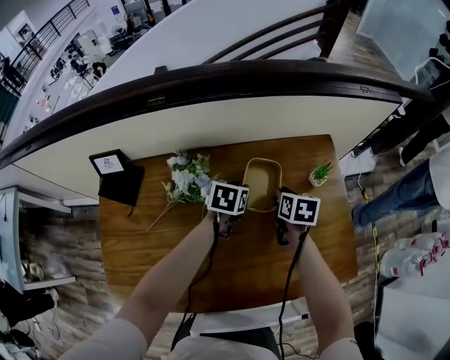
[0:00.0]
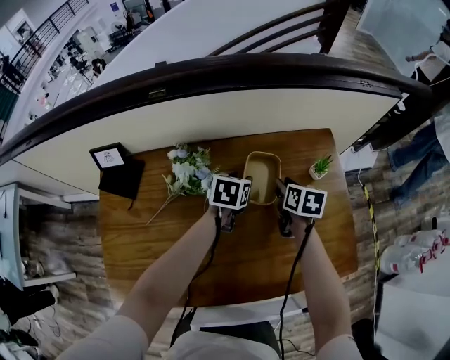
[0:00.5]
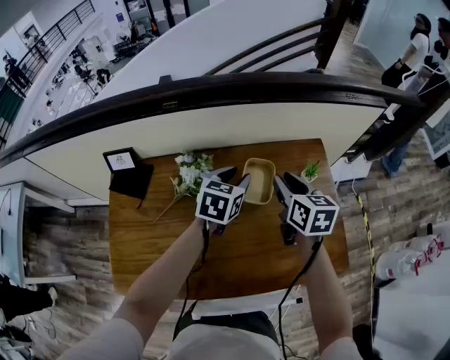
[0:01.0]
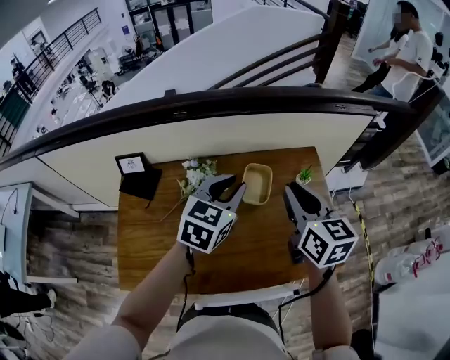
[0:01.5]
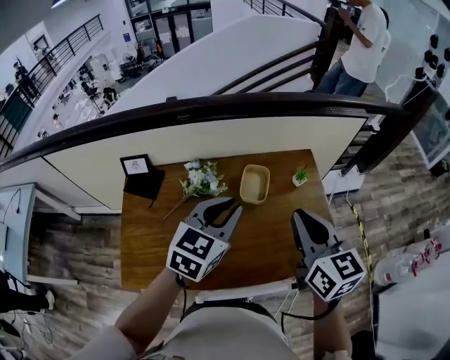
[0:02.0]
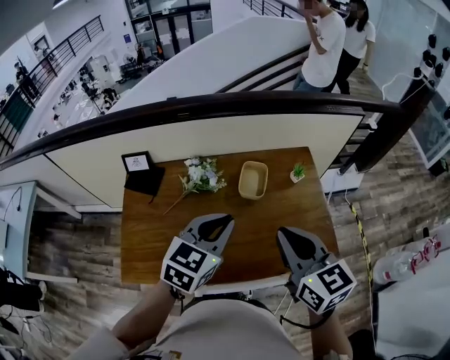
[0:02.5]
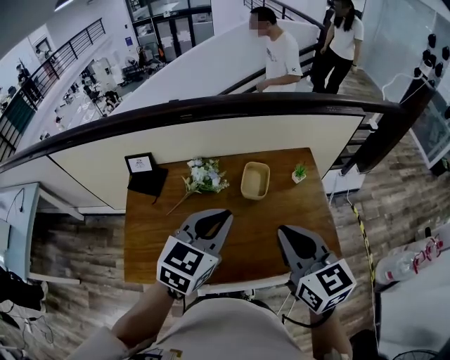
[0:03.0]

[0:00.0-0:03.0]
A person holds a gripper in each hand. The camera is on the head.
0:00.0 to 0:01.5: The grippers both shift upward and backward by roughly 35 cm. The right gripper tips its fingers upward by approximately 30 degrees. The left gripper swivels some 30 degrees.
0:01.5 to 0:03.0: The left gripper moves backward and upward, about 15 cm; the right gripper moves backward, about 15 cm.

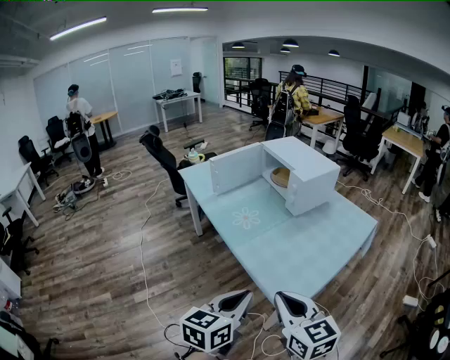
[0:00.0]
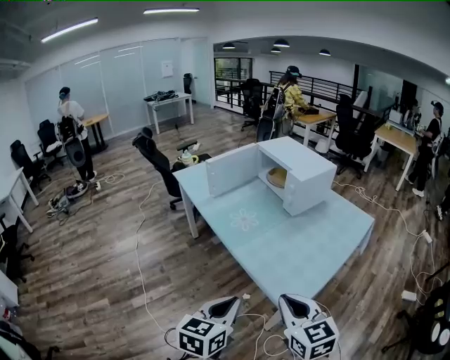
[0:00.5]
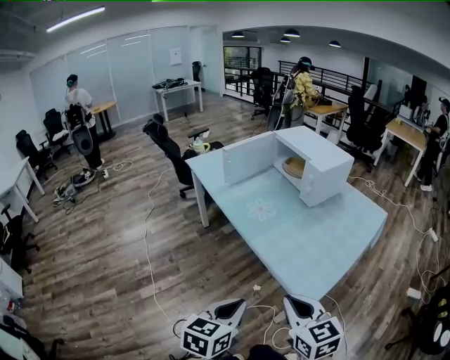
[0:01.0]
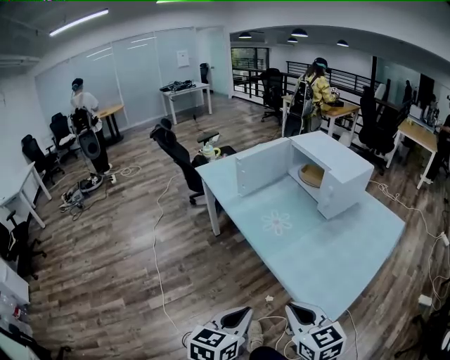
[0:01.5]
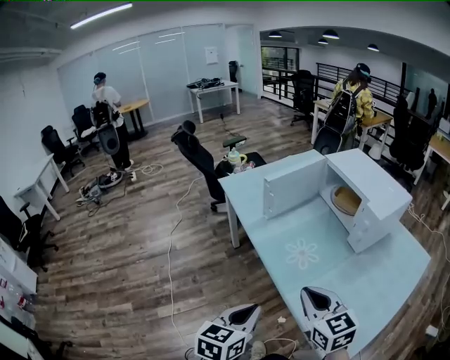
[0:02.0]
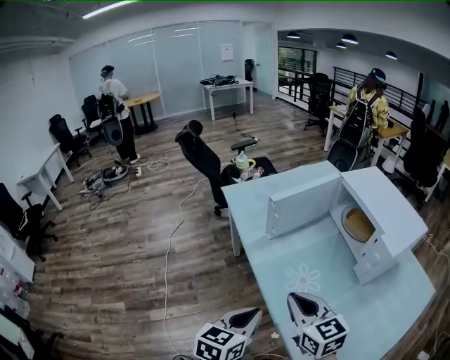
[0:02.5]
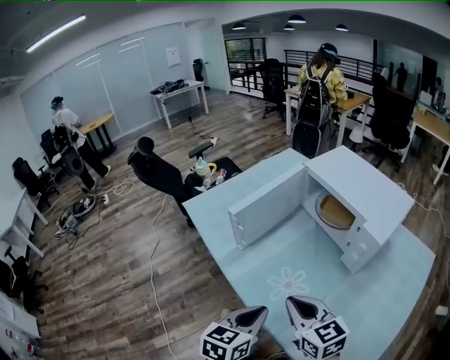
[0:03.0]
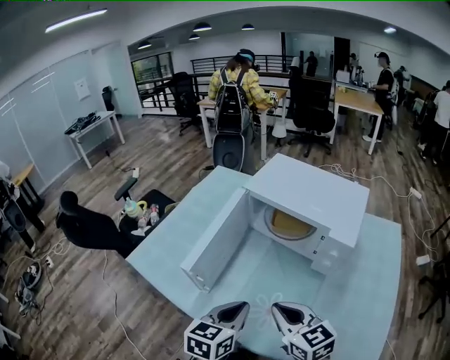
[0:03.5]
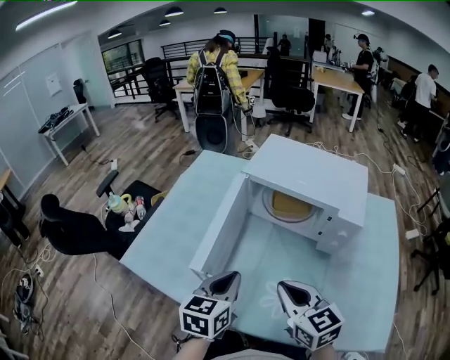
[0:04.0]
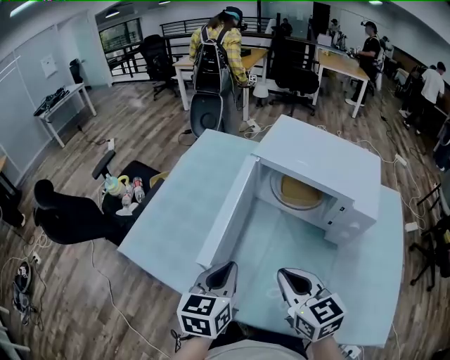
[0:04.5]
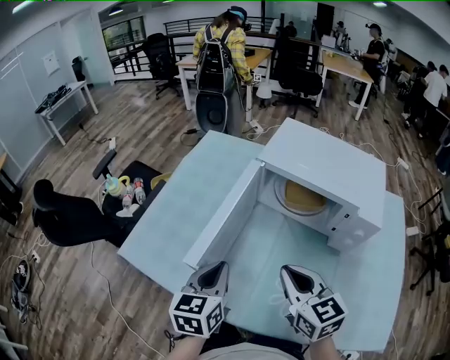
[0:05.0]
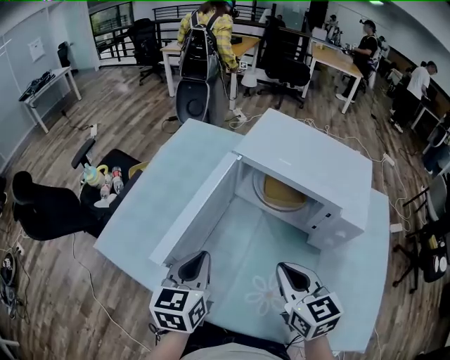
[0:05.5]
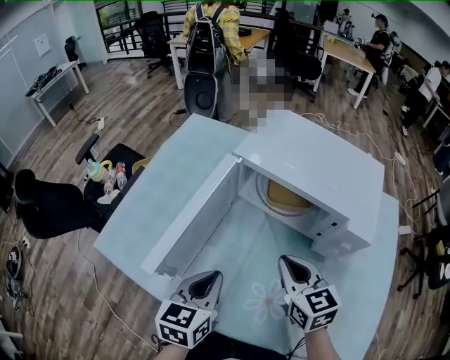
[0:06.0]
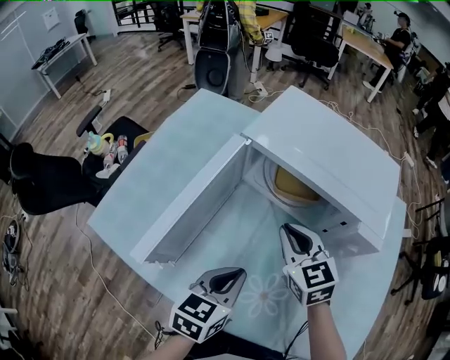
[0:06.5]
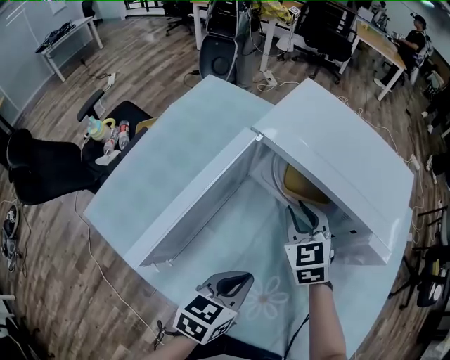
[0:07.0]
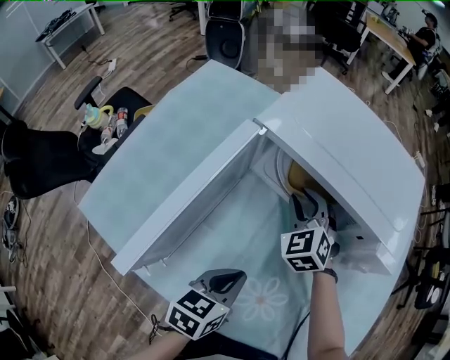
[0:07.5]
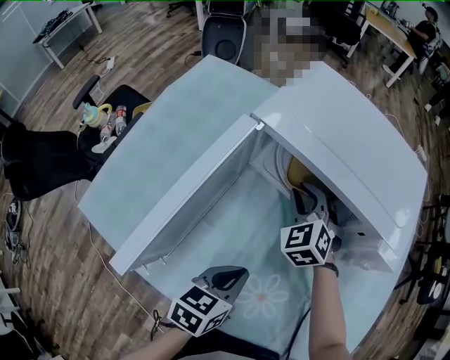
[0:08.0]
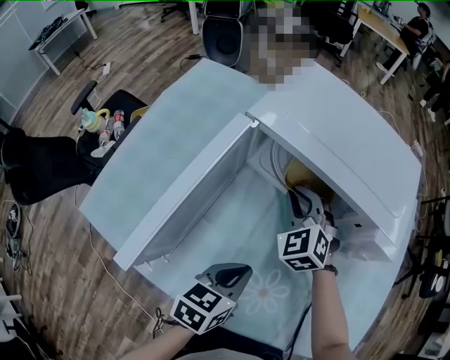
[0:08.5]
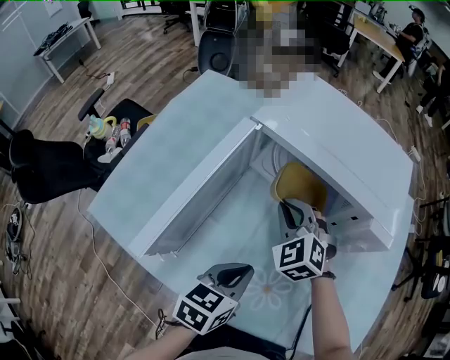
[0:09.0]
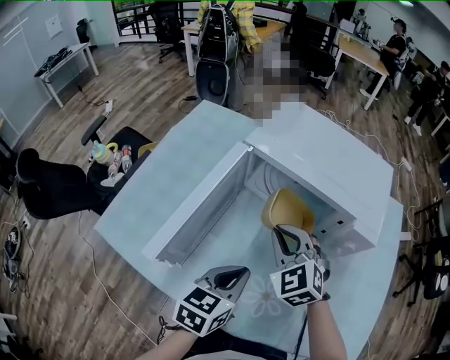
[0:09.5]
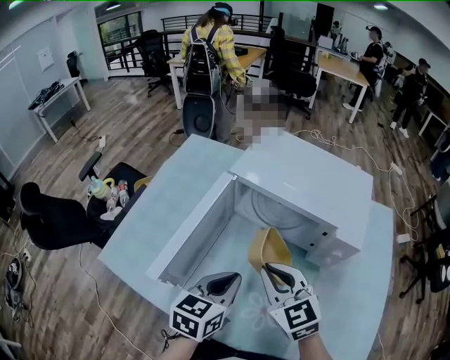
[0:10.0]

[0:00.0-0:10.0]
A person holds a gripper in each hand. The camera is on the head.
0:00.0 to 0:02.0: Both grippers move forward and to the left, approximately 30 cm.
0:02.0 to 0:04.0: The right gripper ends up approximately 30 cm from where it was, and turns by roughly 40 degrees, while the left gripper changes place by some 40 cm, and changes its angle by approximately 40 degrees.
0:04.0 to 0:06.0: The right gripper shifts some 10 cm forward; the left gripper ends up approximately 5 cm from where it was.
0:06.0 to 0:08.0: The left gripper travels downward and to the right by roughly 10 cm, and swivels roughly 20 degrees; the right gripper is displaced forward and downward by about 20 cm, and rolls counterclockwise, seen from behind, by approximately 40 degrees.
0:08.0 to 0:10.0: The left gripper heads upward, covering about 10 cm. The right gripper moves backward and upward, roughly 25 cm, and rotates about 40 degrees.

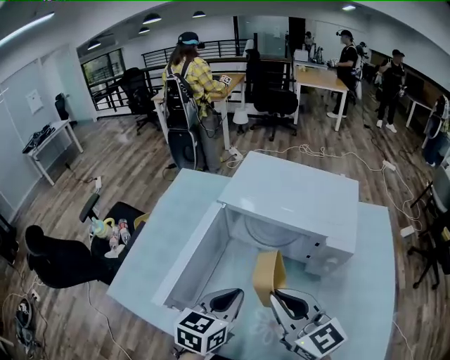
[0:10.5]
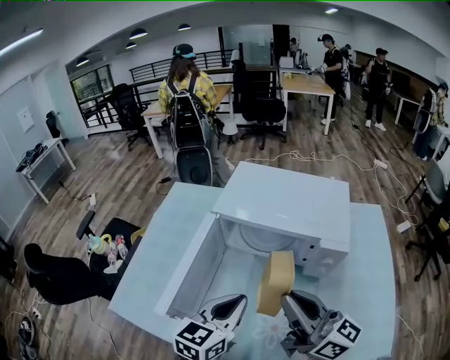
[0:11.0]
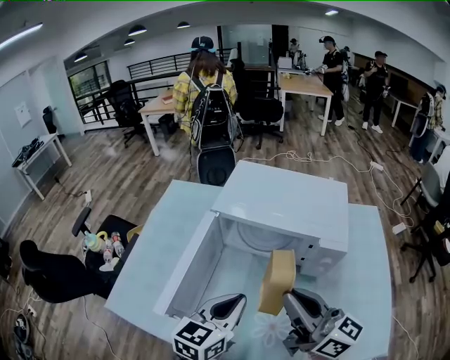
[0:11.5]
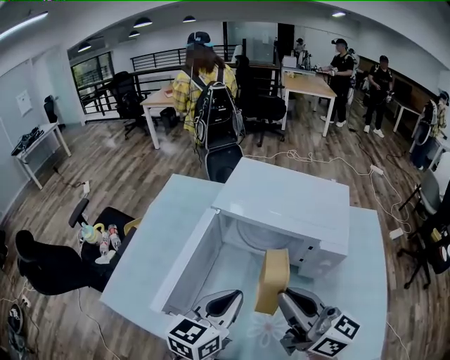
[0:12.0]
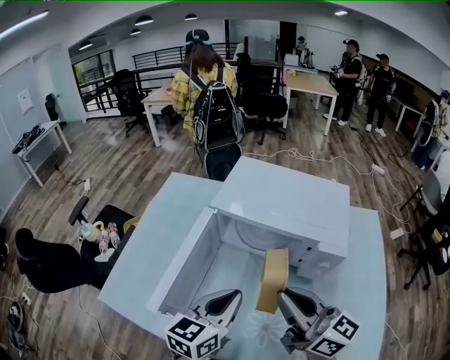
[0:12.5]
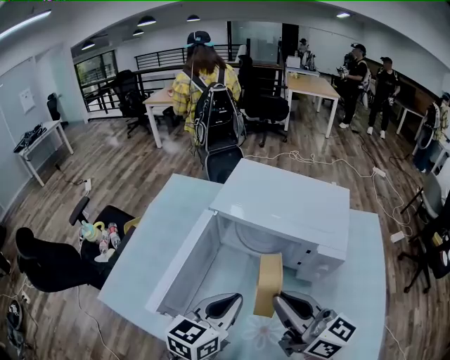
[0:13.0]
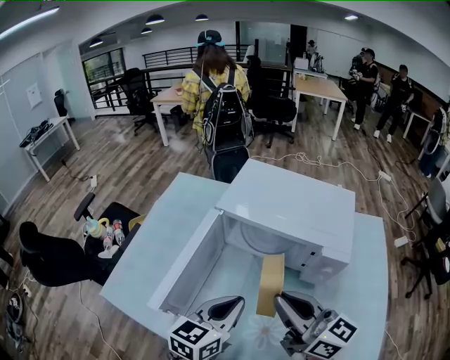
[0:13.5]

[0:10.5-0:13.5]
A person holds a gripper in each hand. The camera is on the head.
0:10.5 to 0:12.0: The right gripper rotates about 30 degrees.
0:12.0 to 0:13.5: The grippers make only small movements.

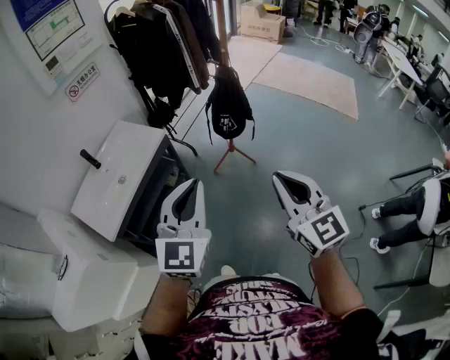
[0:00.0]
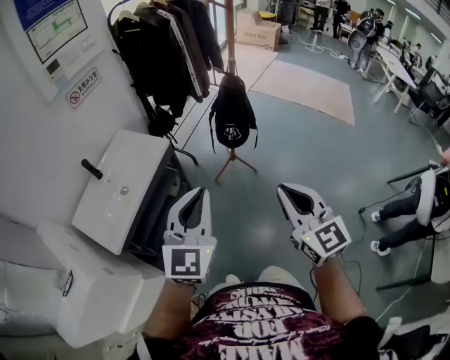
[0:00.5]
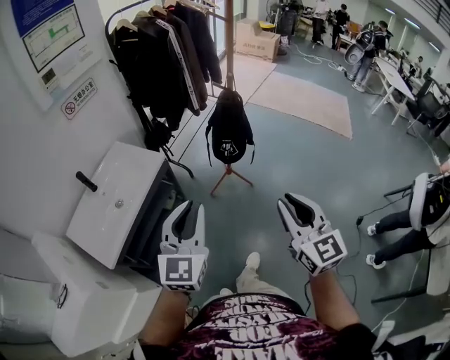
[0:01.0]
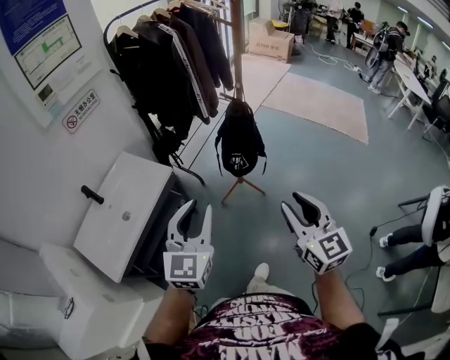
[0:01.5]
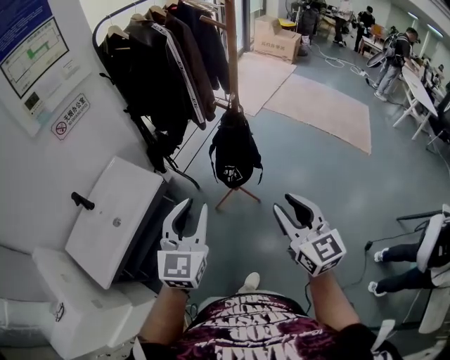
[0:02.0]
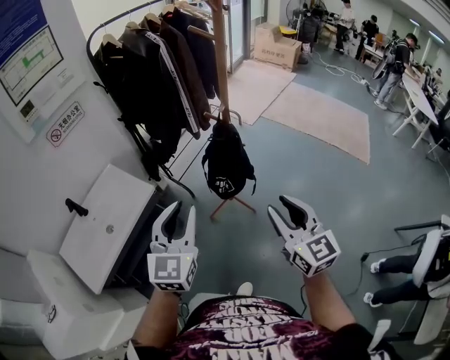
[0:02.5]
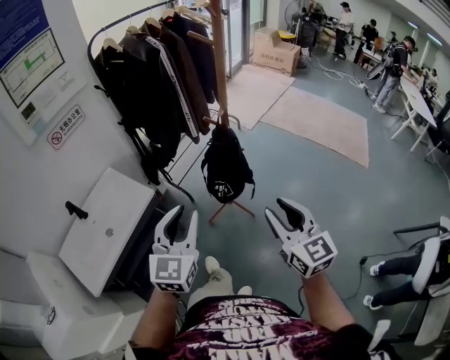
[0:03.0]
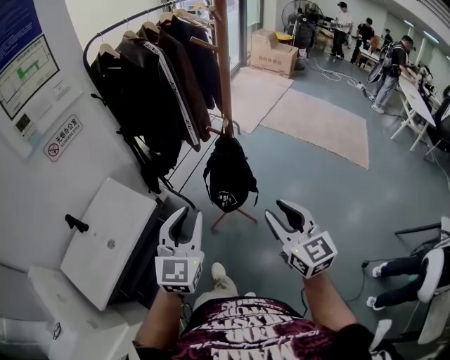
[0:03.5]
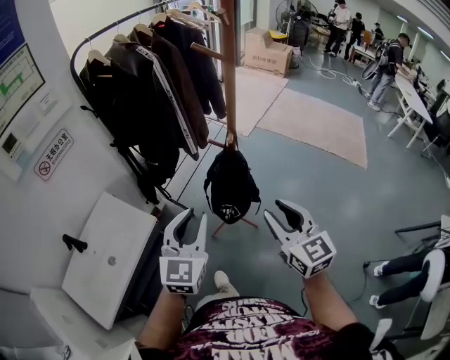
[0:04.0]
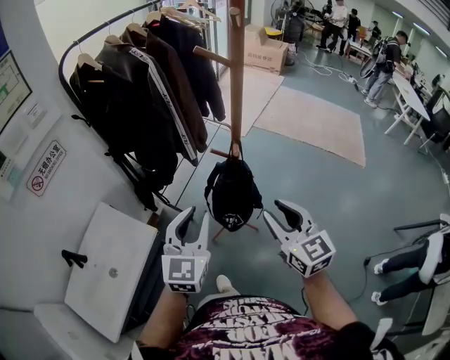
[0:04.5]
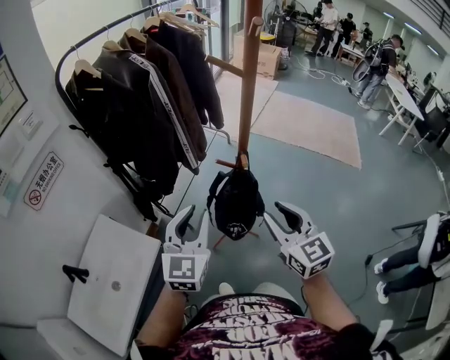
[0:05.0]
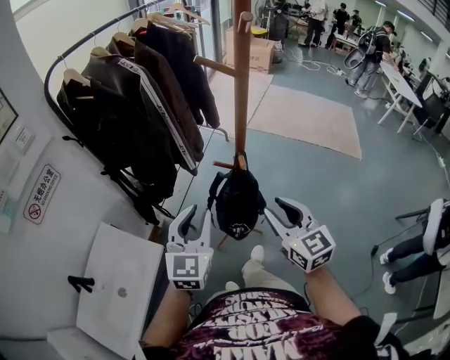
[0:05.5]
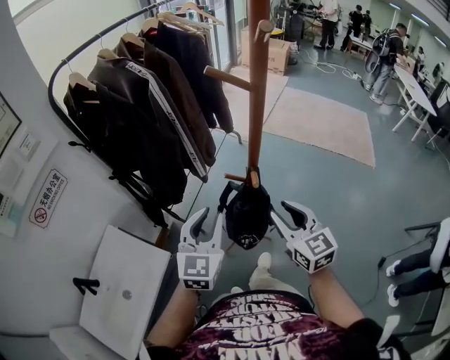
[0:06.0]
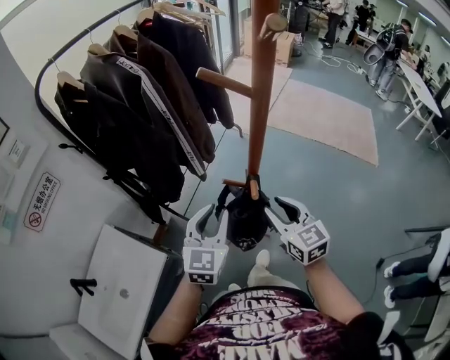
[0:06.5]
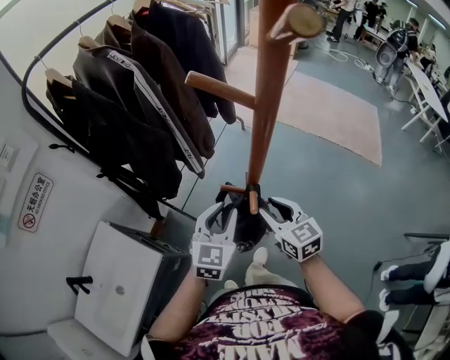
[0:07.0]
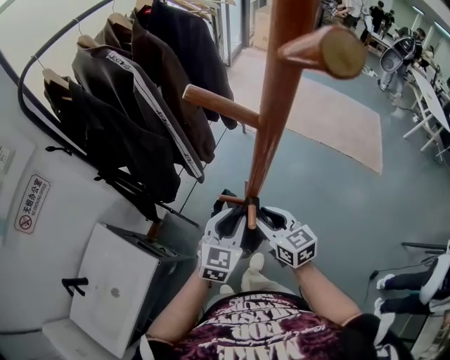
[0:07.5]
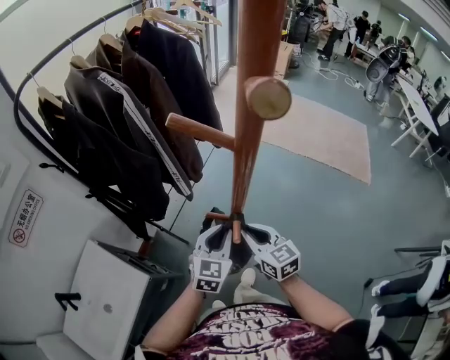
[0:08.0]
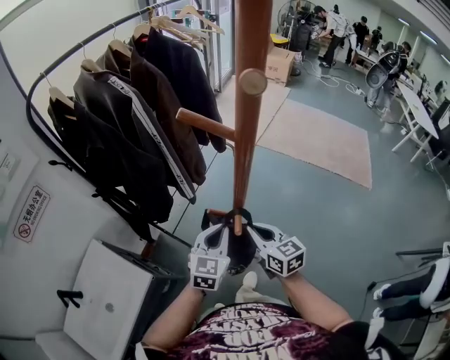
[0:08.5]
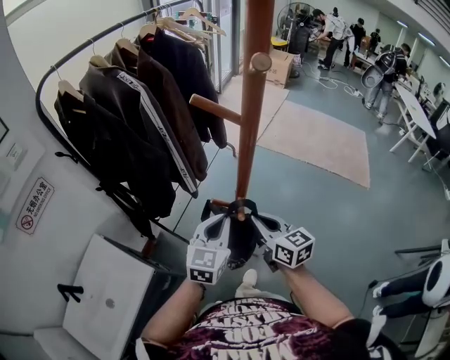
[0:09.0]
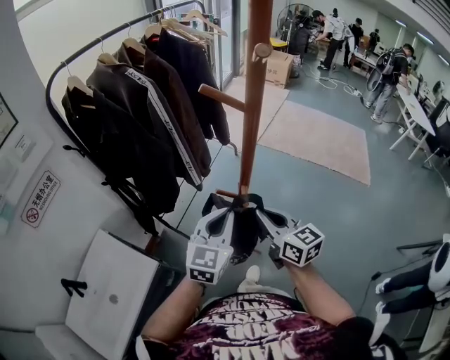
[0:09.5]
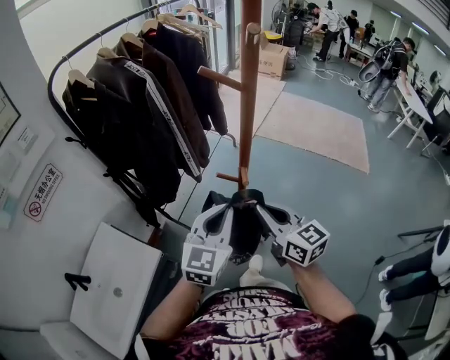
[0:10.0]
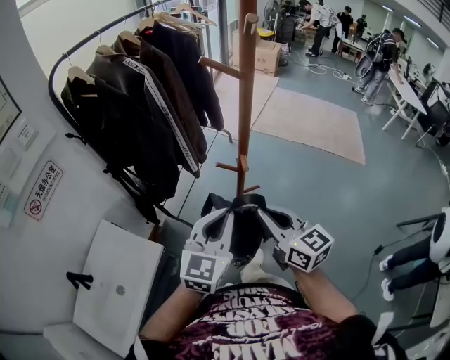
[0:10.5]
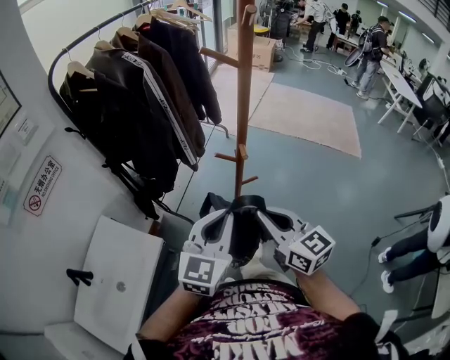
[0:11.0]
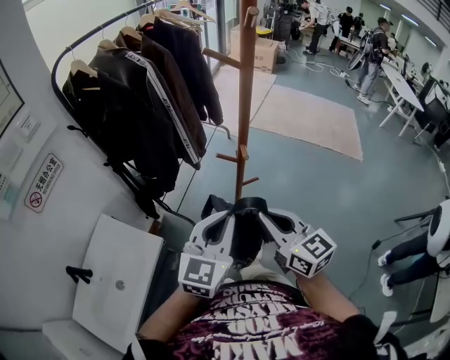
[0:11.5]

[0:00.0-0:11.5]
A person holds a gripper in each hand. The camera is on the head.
0:00.0 to 0:02.0: Both grippers travel together forward, about 25 cm. The right gripper opens, while the left gripper opens up.
0:02.0 to 0:04.0: The two grippers go roughly 15 cm forward.
0:04.0 to 0:06.0: The two grippers go roughly 15 cm forward.
0:06.0 to 0:07.5: The left gripper shifts approximately 15 cm to the right, downward and forward; the right gripper goes about 15 cm forward and downward.
0:07.5 to 0:09.5: The grippers both shift upward and backward by about 10 cm. The left gripper closes up, while the right gripper closes.
0:09.5 to 0:11.5: The two grippers go some 15 cm backward.
